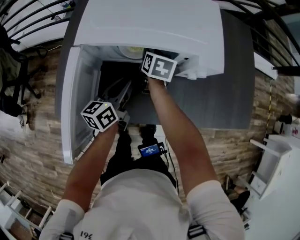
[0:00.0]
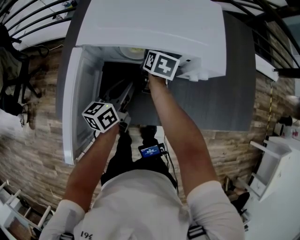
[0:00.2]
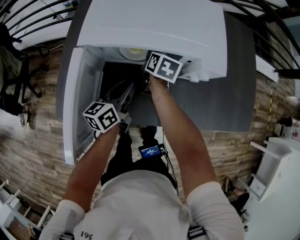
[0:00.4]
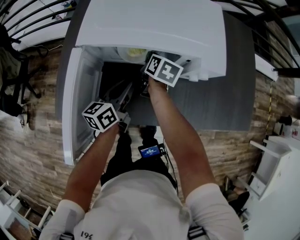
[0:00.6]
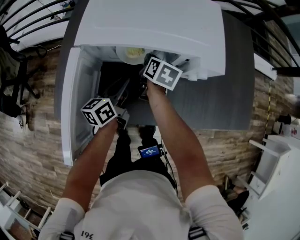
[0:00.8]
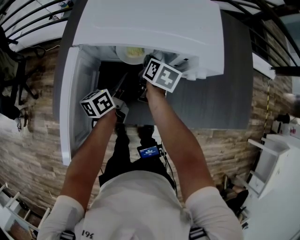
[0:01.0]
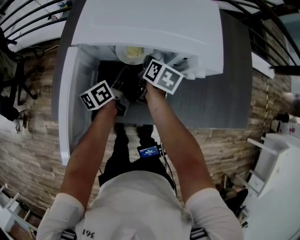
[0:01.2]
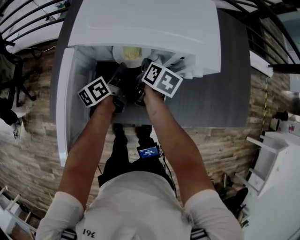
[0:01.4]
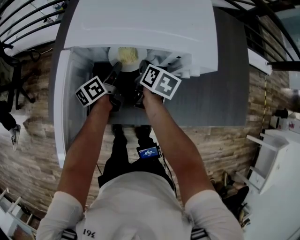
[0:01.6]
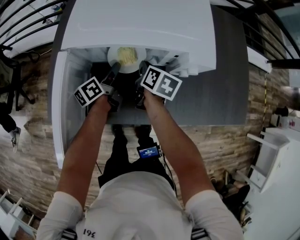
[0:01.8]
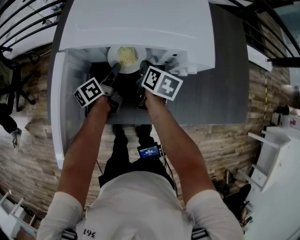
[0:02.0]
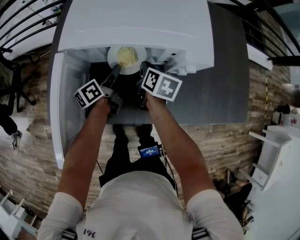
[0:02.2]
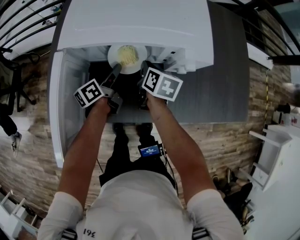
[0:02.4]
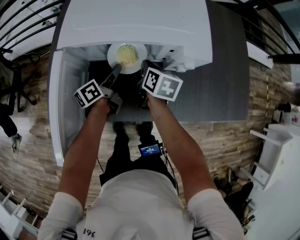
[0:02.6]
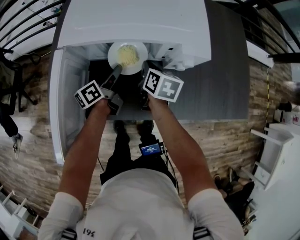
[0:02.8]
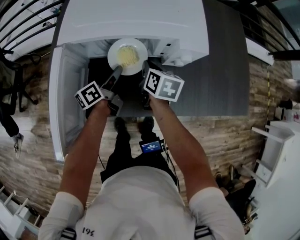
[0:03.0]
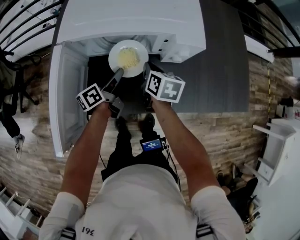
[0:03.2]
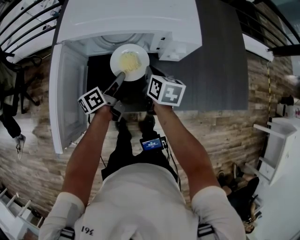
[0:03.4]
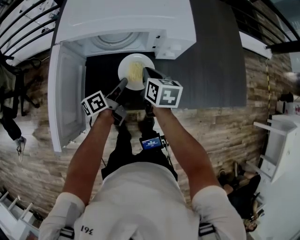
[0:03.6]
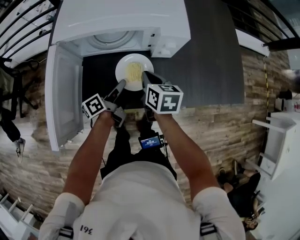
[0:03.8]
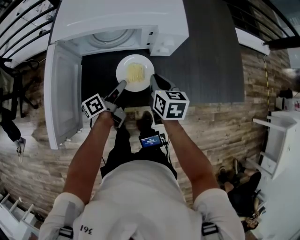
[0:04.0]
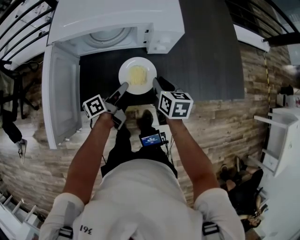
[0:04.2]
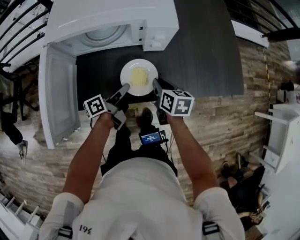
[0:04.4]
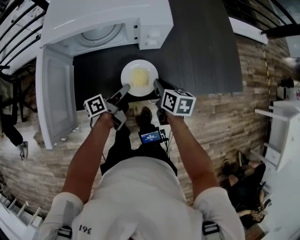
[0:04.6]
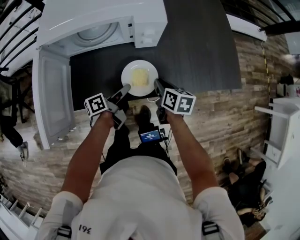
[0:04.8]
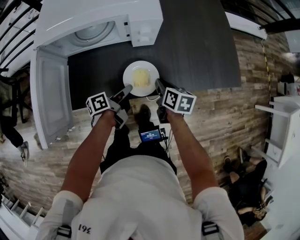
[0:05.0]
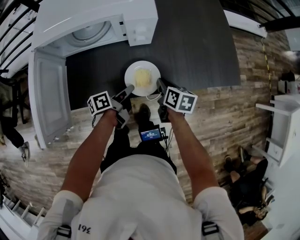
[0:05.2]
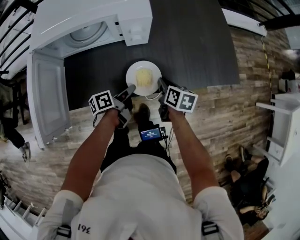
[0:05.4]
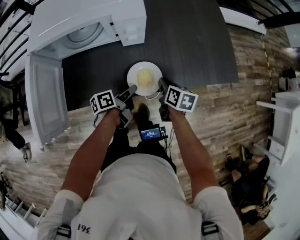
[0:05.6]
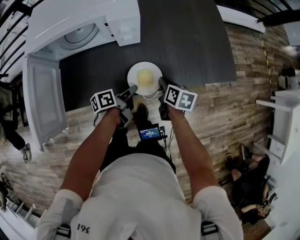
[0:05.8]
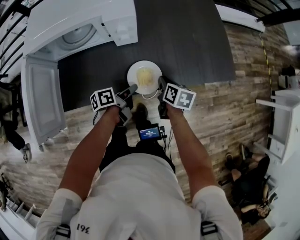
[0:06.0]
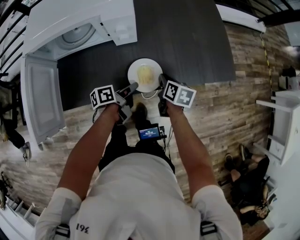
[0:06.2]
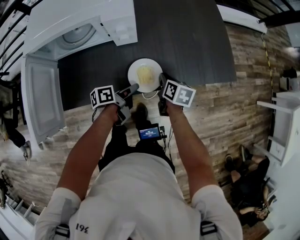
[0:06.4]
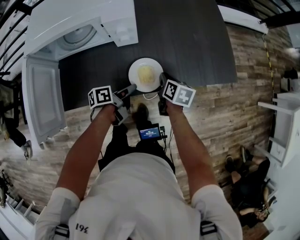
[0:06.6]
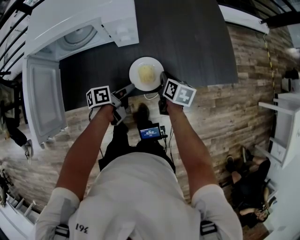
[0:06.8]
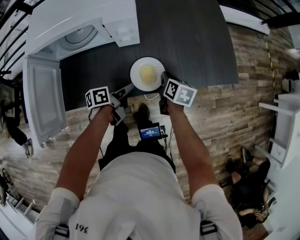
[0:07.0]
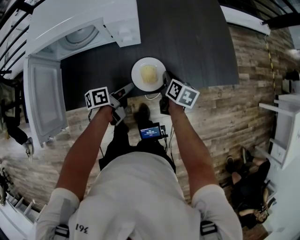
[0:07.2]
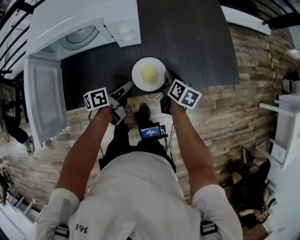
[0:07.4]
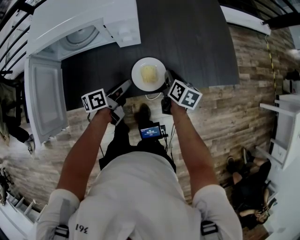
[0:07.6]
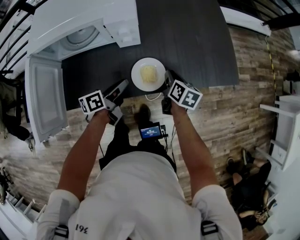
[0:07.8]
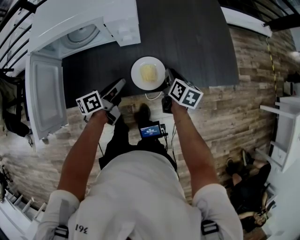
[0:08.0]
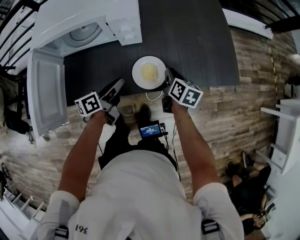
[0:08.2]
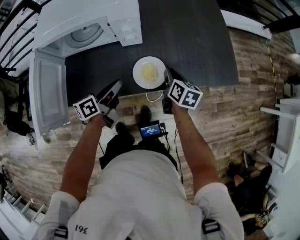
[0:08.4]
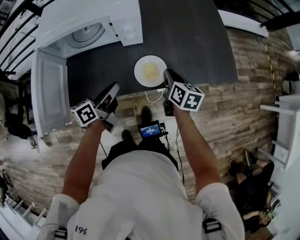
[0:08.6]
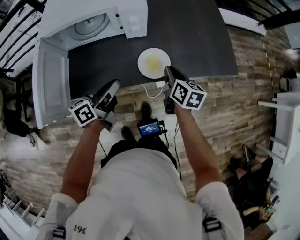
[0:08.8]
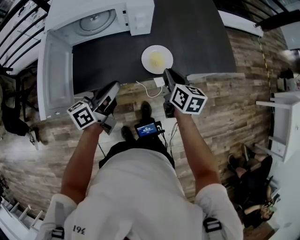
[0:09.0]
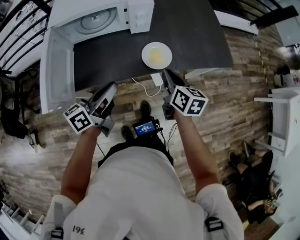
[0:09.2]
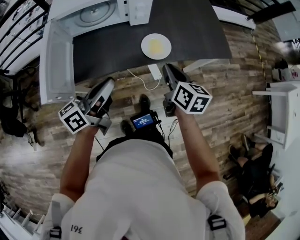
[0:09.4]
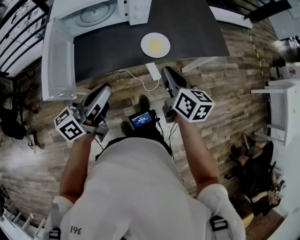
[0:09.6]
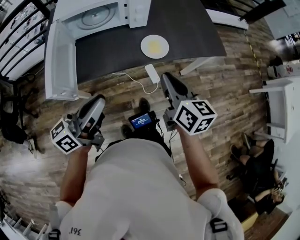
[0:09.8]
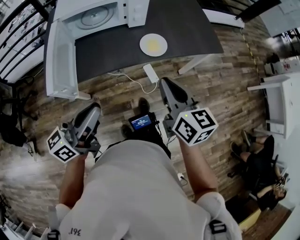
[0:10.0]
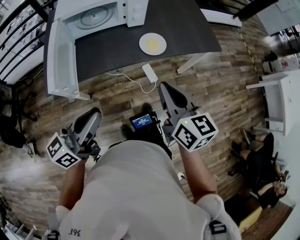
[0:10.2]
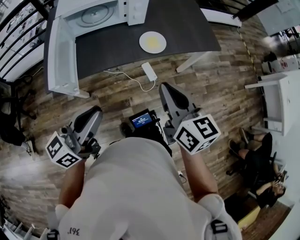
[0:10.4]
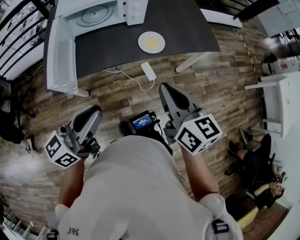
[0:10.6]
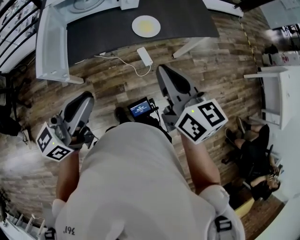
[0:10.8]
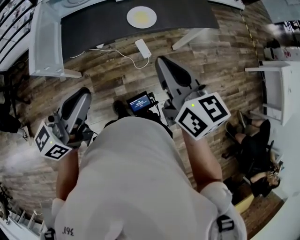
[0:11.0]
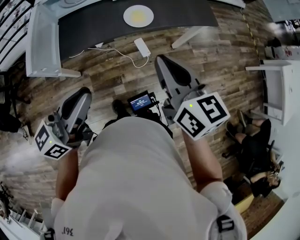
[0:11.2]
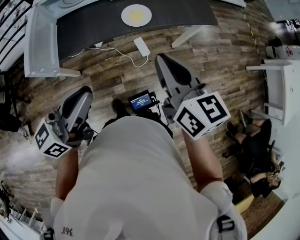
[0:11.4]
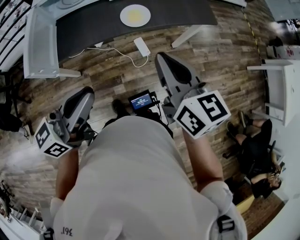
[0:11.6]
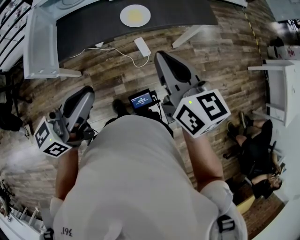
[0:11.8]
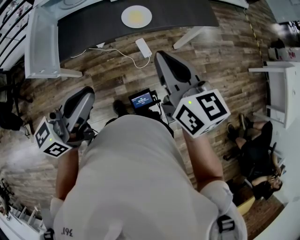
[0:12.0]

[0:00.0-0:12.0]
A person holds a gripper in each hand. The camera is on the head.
0:00.0 to 0:01.6: The right gripper closes up. The left gripper shifts approximately 10 cm forward and downward, and rotates some 20 degrees.
0:01.6 to 0:03.0: The left gripper ends up about 5 cm from where it was. The right gripper ends up approximately 5 cm from where it was.
0:03.0 to 0:04.4: The grippers both shift to the right and backward by some 15 cm. The left gripper changes its angle by about 20 degrees.
0:04.4 to 0:06.0: The right gripper travels to the right by approximately 15 cm. The left gripper goes approximately 15 cm to the right and downward, and swivels approximately 20 degrees.
0:06.0 to 0:07.6: The left gripper moves some 5 cm.
0:07.6 to 0:09.0: The right gripper moves backward and upward, about 15 cm; the left gripper shifts about 20 cm upward and backward, and swivels some 20 degrees.
0:09.0 to 0:10.4: The two grippers go some 30 cm backward and upward. The right gripper swivels some 20 degrees. The left gripper turns by roughly 30 degrees.
0:10.4 to 0:12.0: The two grippers go about 10 cm to the right.

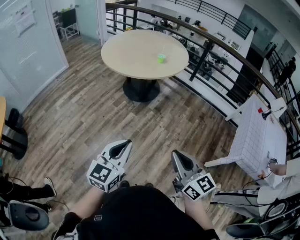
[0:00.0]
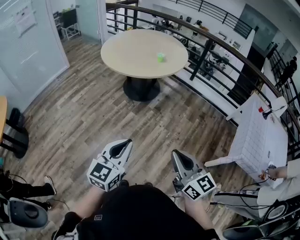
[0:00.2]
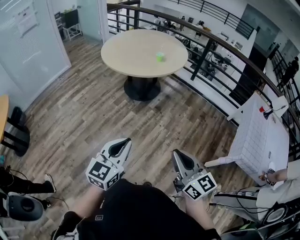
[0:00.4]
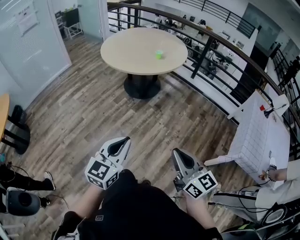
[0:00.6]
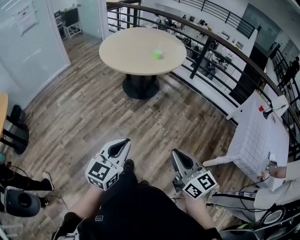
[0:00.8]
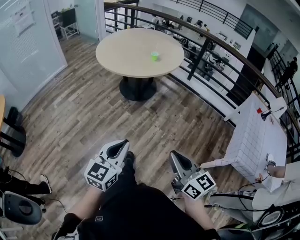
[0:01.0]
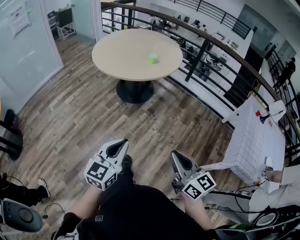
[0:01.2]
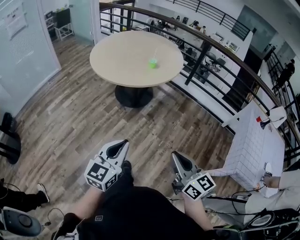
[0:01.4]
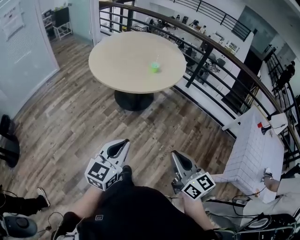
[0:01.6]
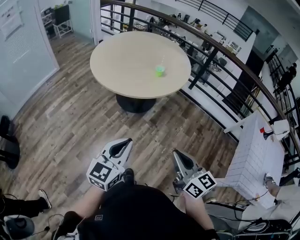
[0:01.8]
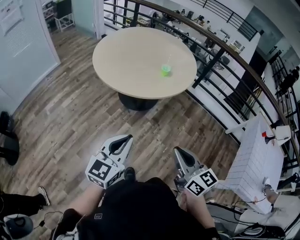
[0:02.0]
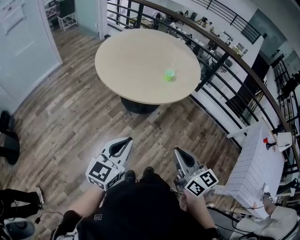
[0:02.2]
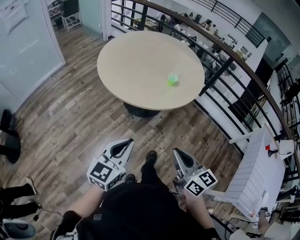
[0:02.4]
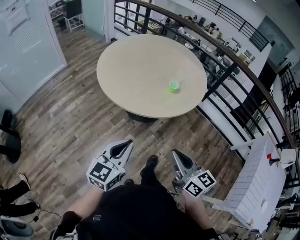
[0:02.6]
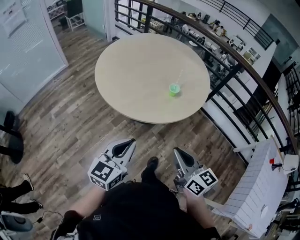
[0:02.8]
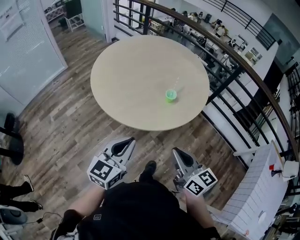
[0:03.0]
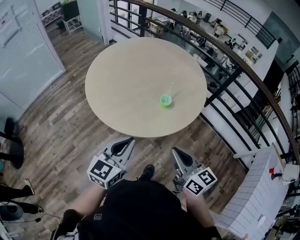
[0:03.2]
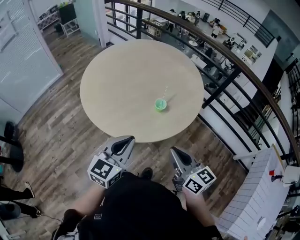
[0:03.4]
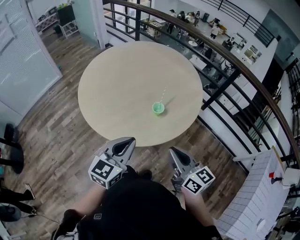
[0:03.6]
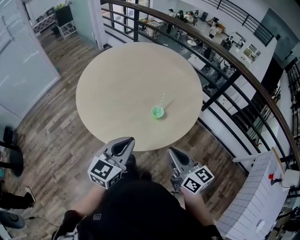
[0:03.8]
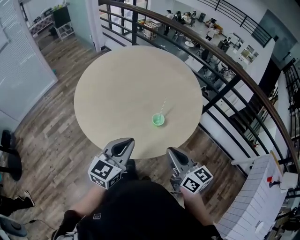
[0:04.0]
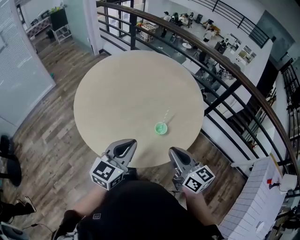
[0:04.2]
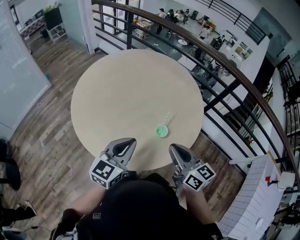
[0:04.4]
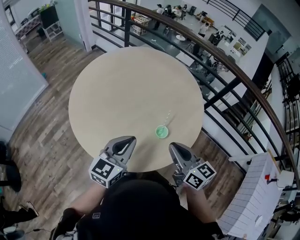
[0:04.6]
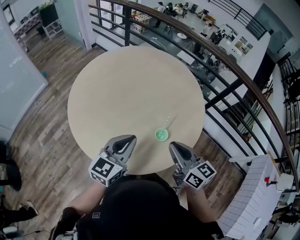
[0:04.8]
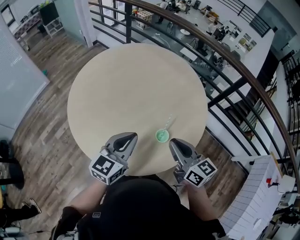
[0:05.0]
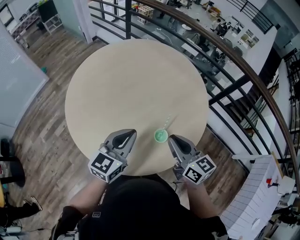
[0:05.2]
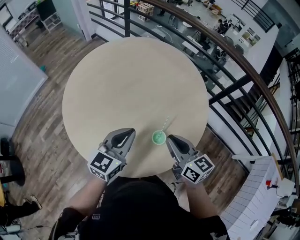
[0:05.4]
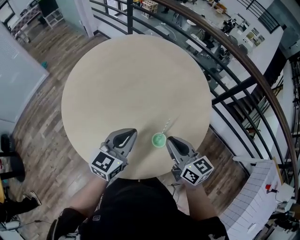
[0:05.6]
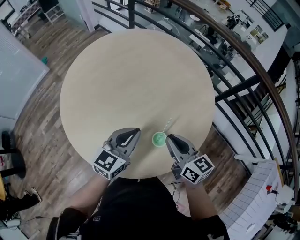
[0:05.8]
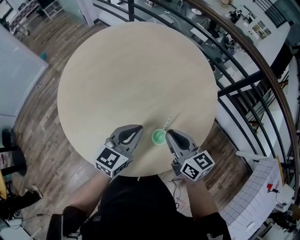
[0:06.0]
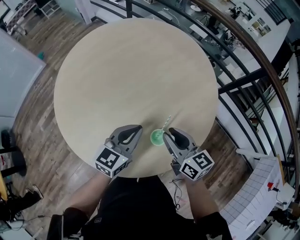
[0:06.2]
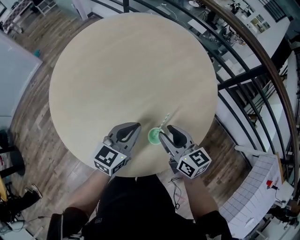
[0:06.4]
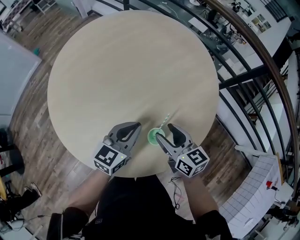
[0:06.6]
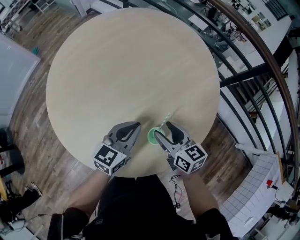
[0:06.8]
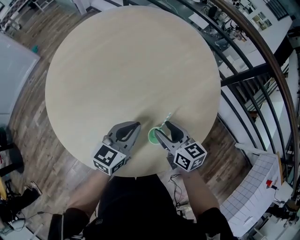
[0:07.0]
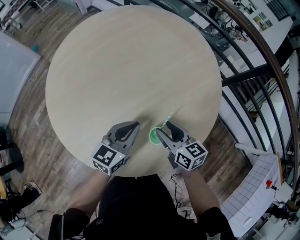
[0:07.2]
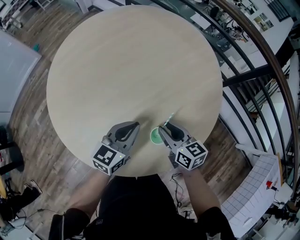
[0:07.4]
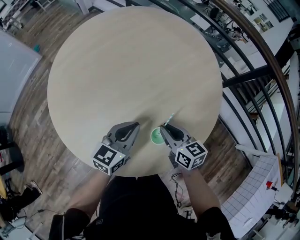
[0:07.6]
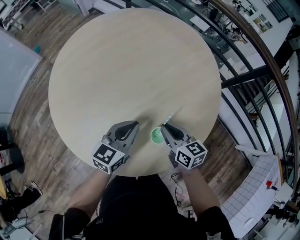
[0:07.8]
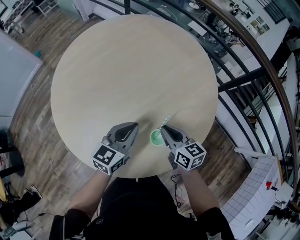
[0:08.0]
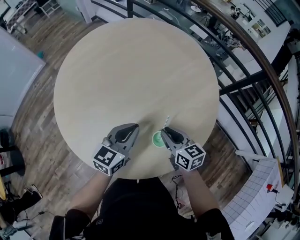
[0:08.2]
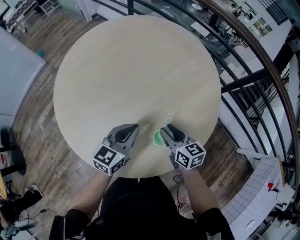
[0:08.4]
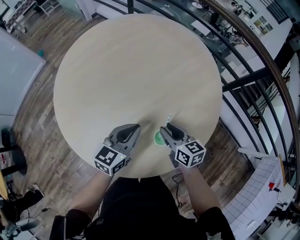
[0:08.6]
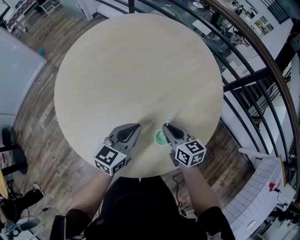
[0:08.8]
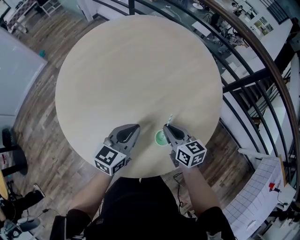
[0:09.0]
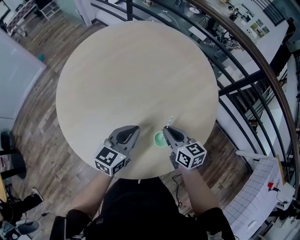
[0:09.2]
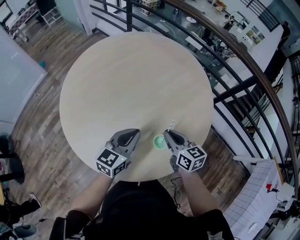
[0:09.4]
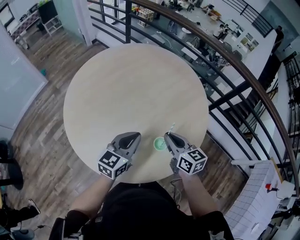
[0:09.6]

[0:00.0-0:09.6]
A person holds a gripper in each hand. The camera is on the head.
0:00.0 to 0:01.6: The grippers both shift forward by about 20 cm.
0:01.6 to 0:03.2: Both grippers travel together forward, some 35 cm.
0:03.2 to 0:04.8: Both grippers travel together forward, about 25 cm.
0:04.8 to 0:06.4: The right gripper shifts some 20 cm downward and forward, and opens up; the left gripper shifts approximately 20 cm downward, forward and to the right.
0:06.4 to 0:08.0: The right gripper shifts by some 5 cm, and closes its fingers.
0:08.0 to 0:09.6: The two grippers go some 10 cm upward. The right gripper opens and closes again.

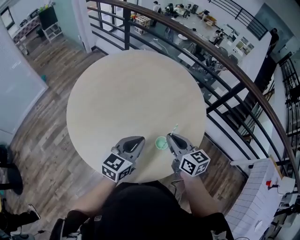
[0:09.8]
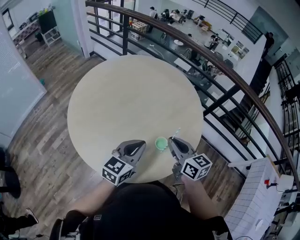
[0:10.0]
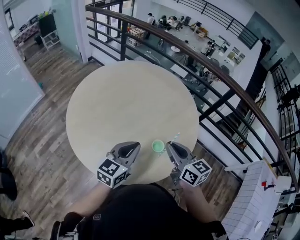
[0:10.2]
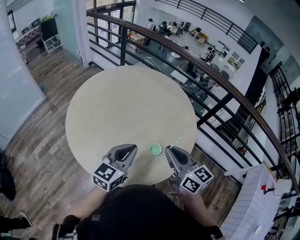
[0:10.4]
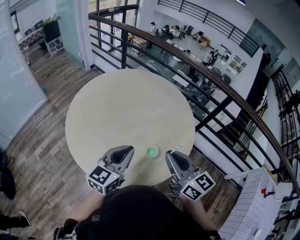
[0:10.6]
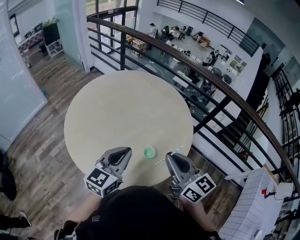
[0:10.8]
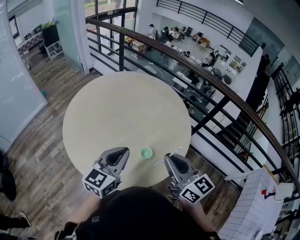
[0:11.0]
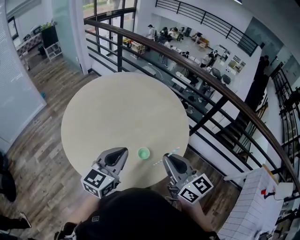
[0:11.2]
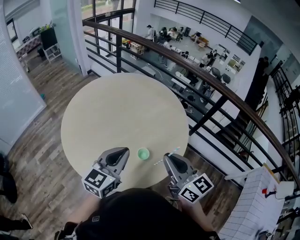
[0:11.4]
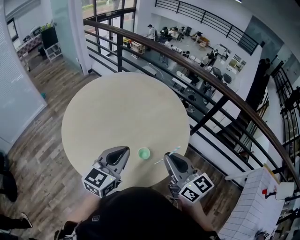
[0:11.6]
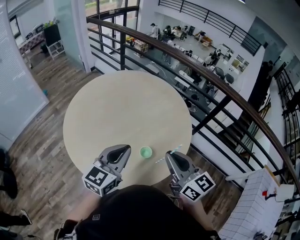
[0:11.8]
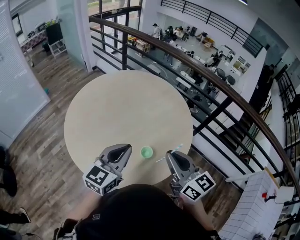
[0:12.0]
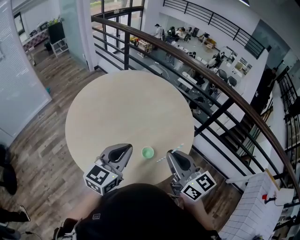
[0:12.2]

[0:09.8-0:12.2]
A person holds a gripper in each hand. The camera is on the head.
0:09.8 to 0:11.0: The right gripper goes about 20 cm upward and backward; the left gripper goes approximately 10 cm upward and backward.
0:11.0 to 0:12.2: There are only small adjustments of the grippers.
